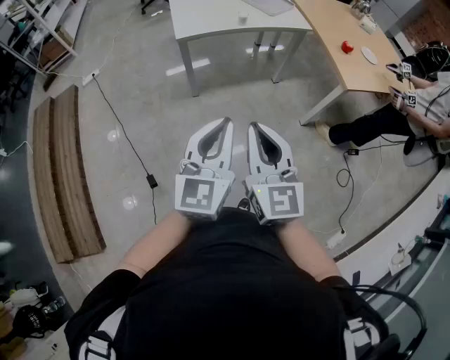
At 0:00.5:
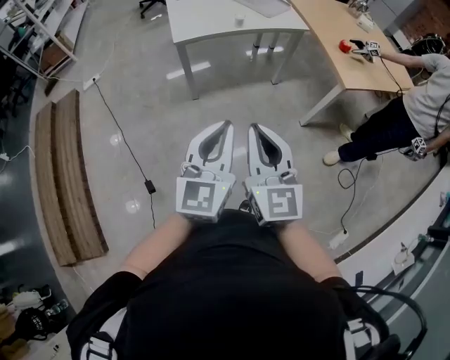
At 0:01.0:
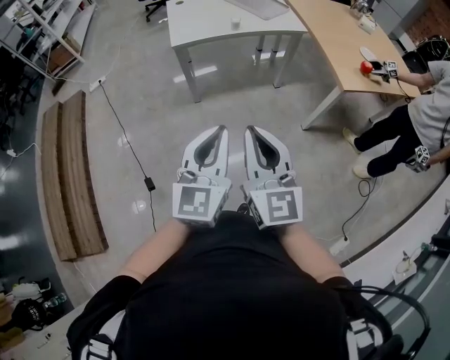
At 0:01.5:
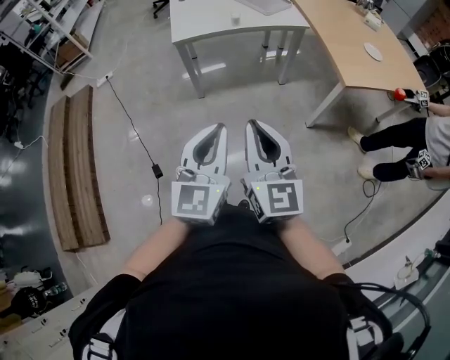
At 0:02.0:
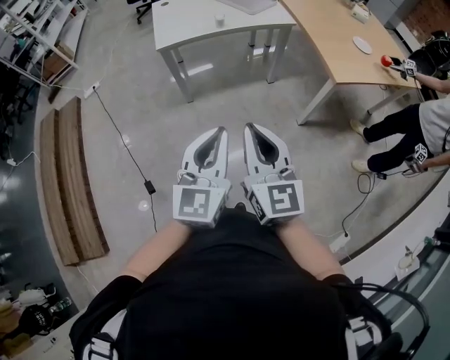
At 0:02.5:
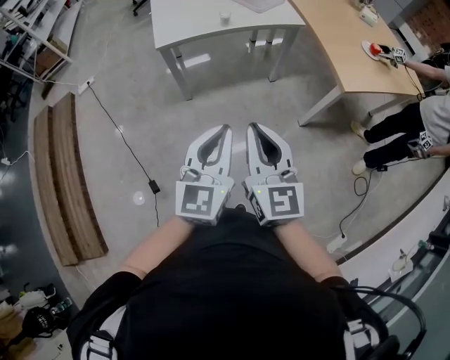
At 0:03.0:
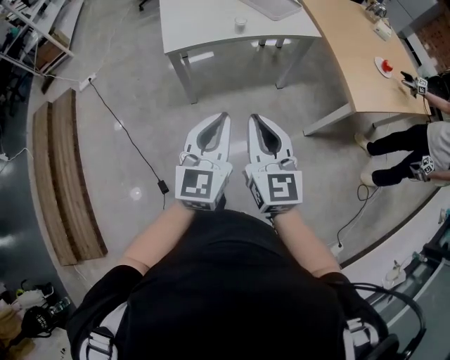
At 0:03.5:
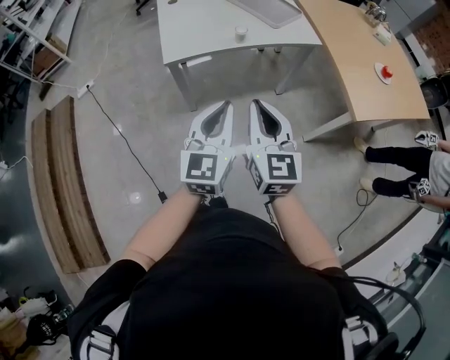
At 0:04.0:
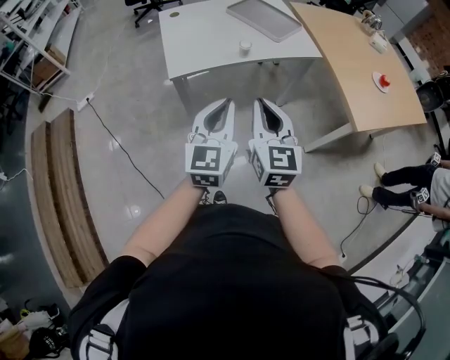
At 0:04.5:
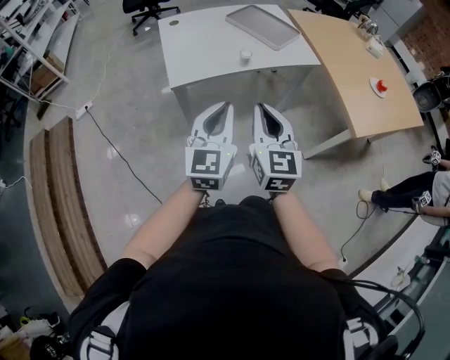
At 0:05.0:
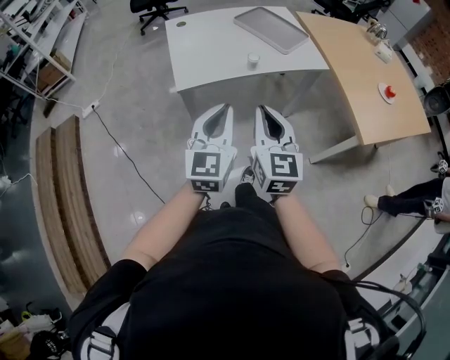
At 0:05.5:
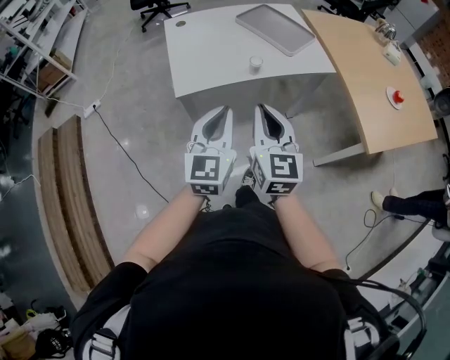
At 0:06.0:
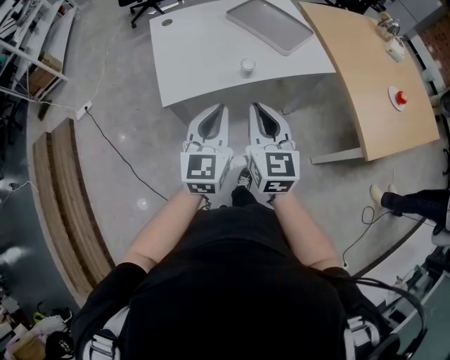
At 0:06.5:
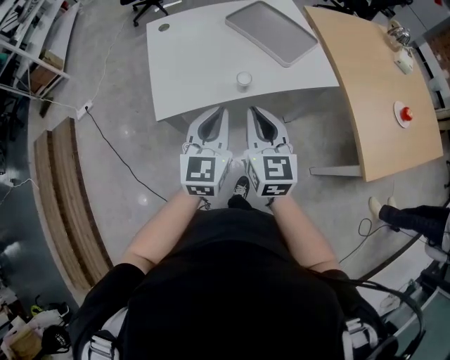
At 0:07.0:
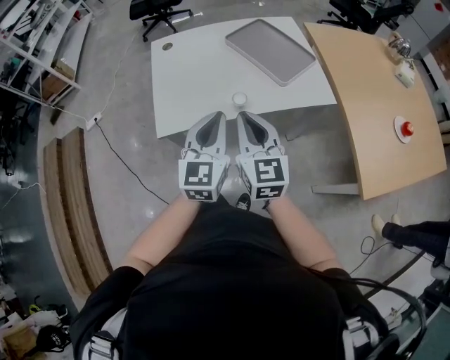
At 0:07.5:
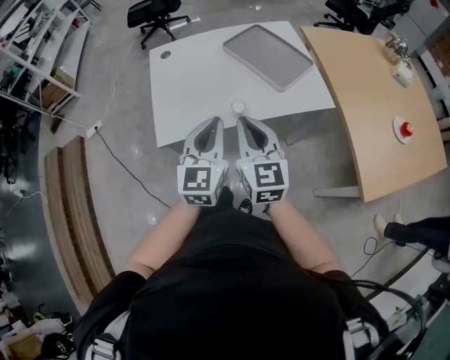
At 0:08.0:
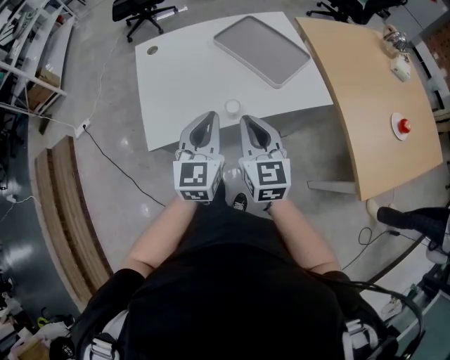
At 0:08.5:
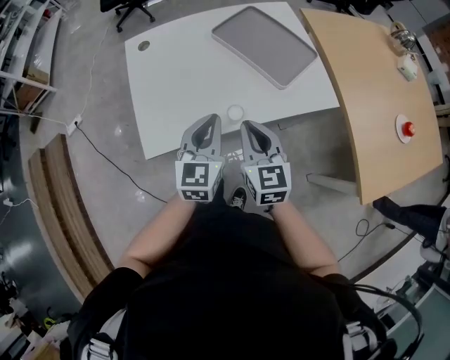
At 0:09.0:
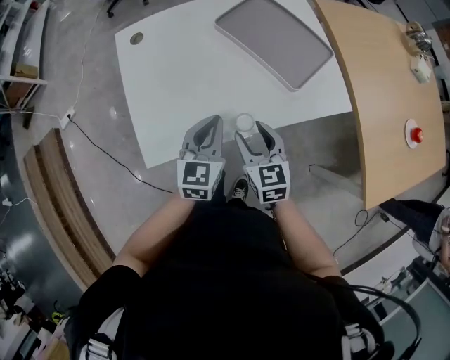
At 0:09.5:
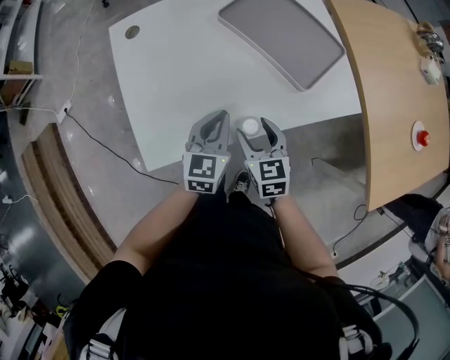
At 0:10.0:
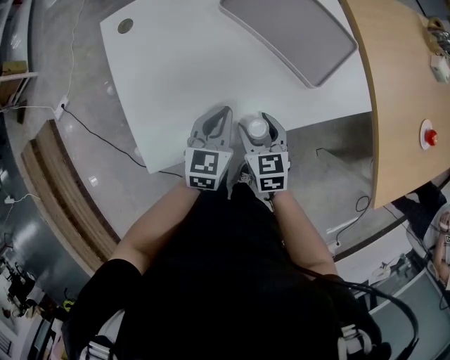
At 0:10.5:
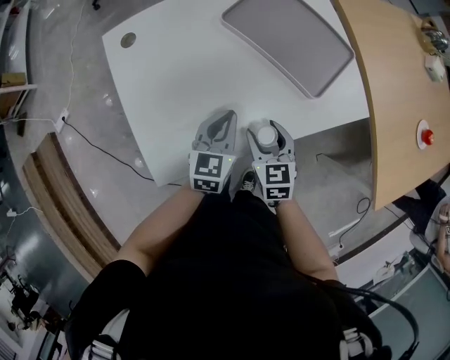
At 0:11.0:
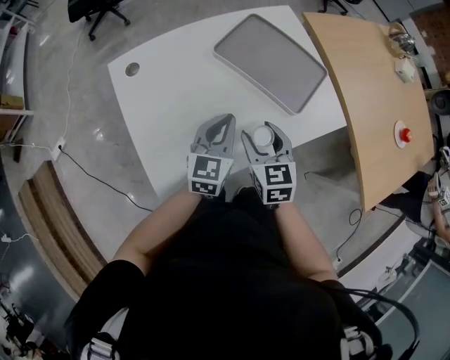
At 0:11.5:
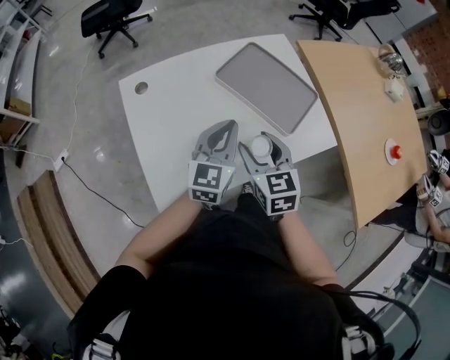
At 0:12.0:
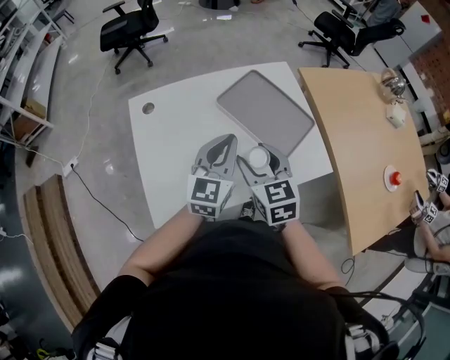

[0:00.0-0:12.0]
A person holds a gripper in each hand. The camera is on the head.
0:00.0 to 0:02.0: The grippers both shift to the right by some 15 cm.
0:02.0 to 0:04.0: The right gripper heads forward, covering approximately 35 cm; the left gripper shifts approximately 35 cm forward and to the left.
0:04.0 to 0:06.0: The grippers both shift forward by roughly 20 cm.
0:06.0 to 0:08.0: Both grippers travel together forward, roughly 15 cm.
0:08.0 to 0:10.0: The grippers both shift downward and forward by some 30 cm. The left gripper swivels roughly 30 degrees, while the right gripper changes its angle by approximately 30 degrees, and opens up.
0:10.0 to 0:12.0: The two grippers go roughly 25 cm upward. The left gripper turns by some 20 degrees.

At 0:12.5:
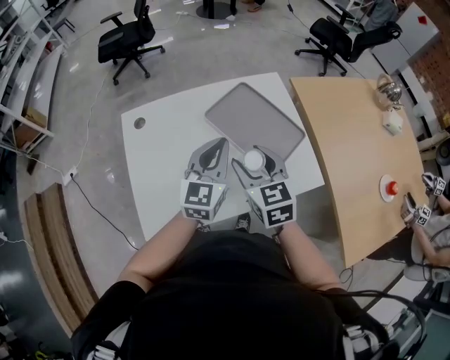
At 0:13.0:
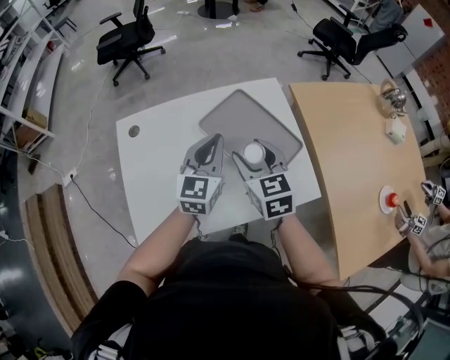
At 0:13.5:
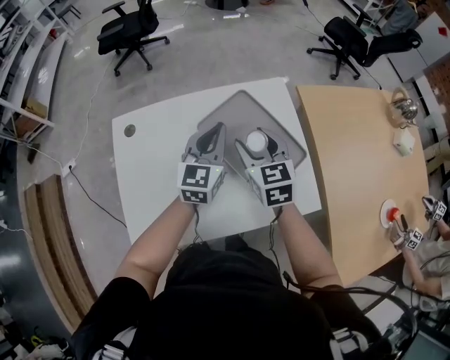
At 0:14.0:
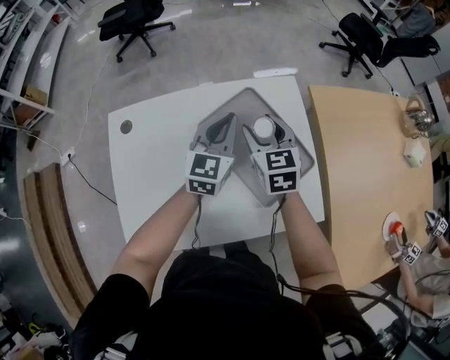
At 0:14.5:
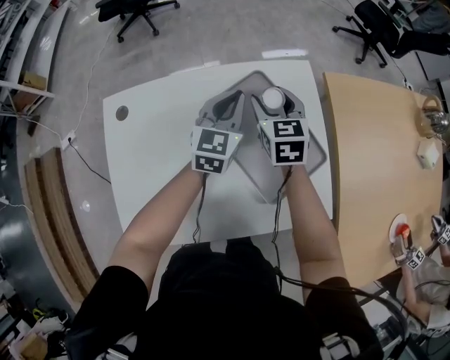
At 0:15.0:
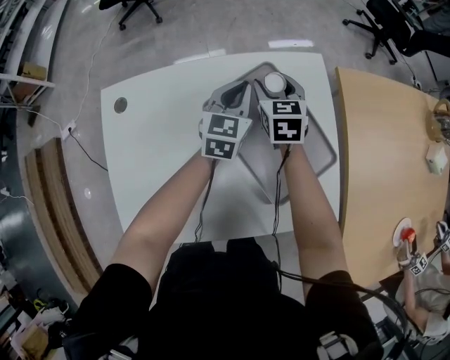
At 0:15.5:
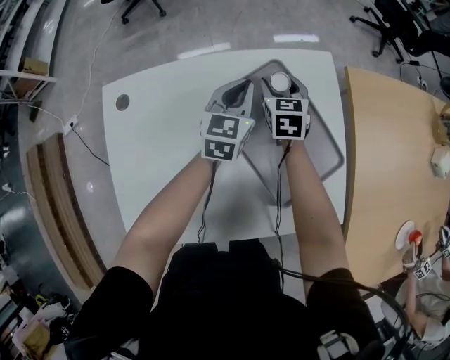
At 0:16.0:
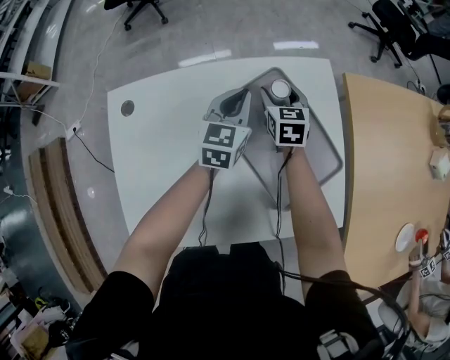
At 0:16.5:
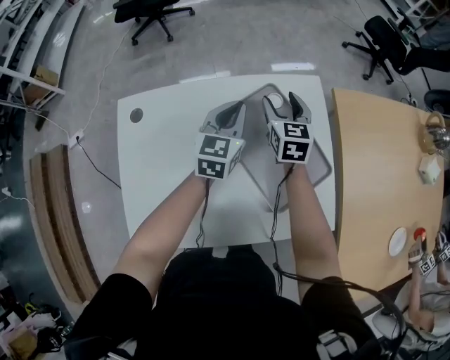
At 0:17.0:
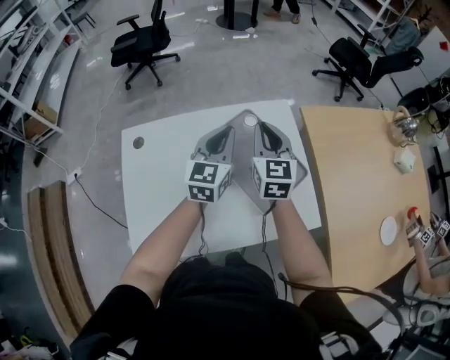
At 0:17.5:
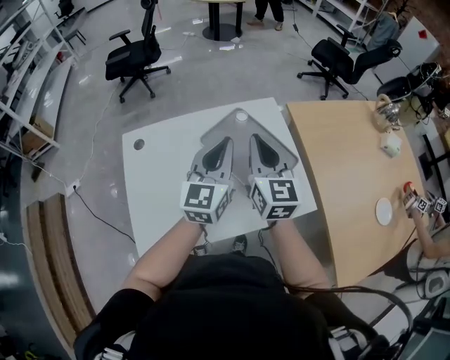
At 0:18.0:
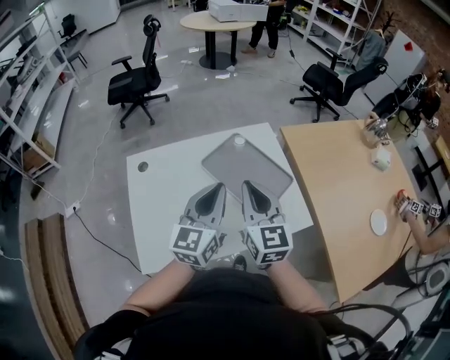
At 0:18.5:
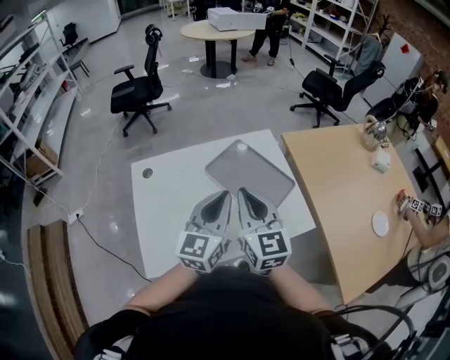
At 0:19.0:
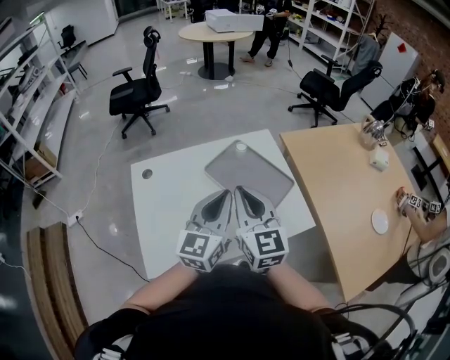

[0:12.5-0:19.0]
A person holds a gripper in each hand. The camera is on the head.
0:12.5 to 0:14.5: The grippers both shift forward and downward by about 30 cm.
0:14.5 to 0:17.0: The two grippers go approximately 15 cm upward and backward. The right gripper closes up.
0:17.0 to 0:19.0: The grippers both shift backward and upward by roughly 25 cm.

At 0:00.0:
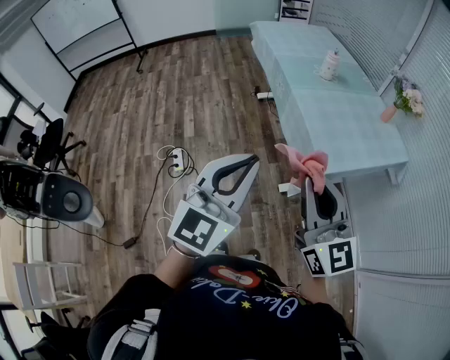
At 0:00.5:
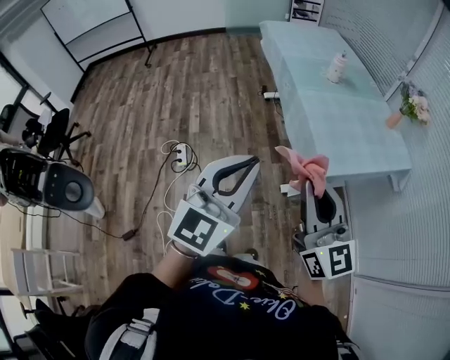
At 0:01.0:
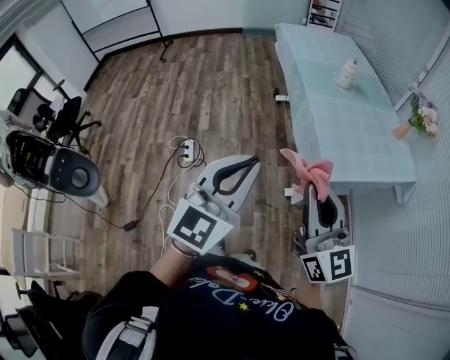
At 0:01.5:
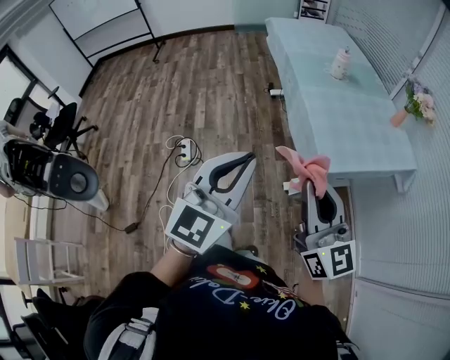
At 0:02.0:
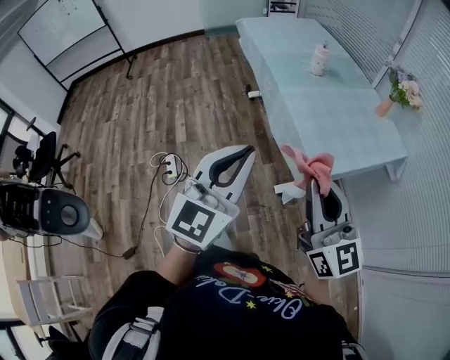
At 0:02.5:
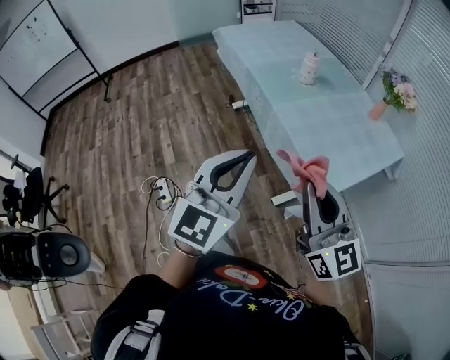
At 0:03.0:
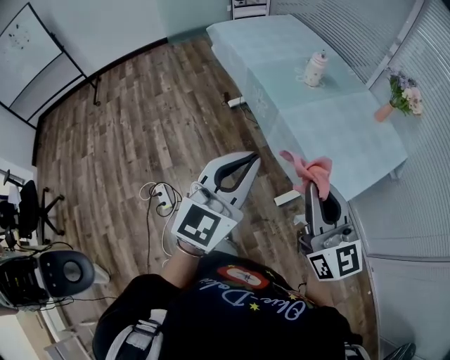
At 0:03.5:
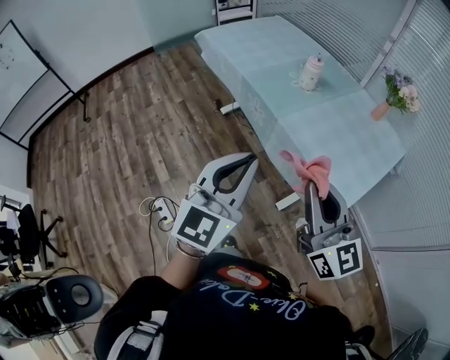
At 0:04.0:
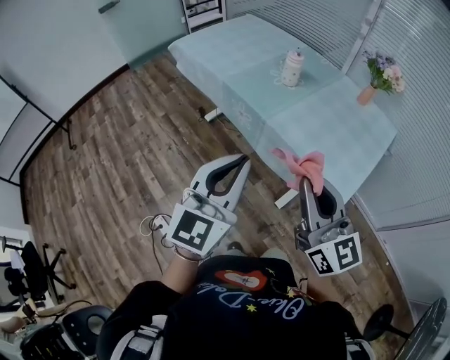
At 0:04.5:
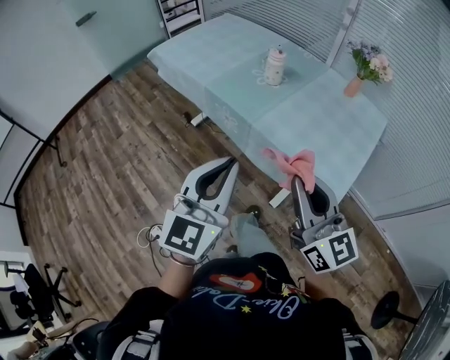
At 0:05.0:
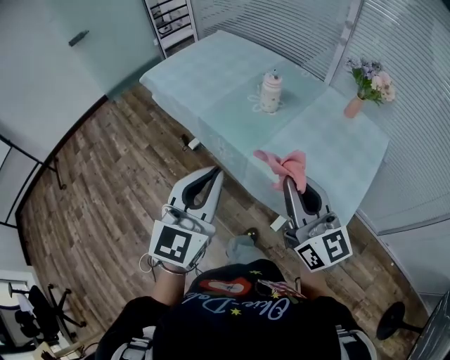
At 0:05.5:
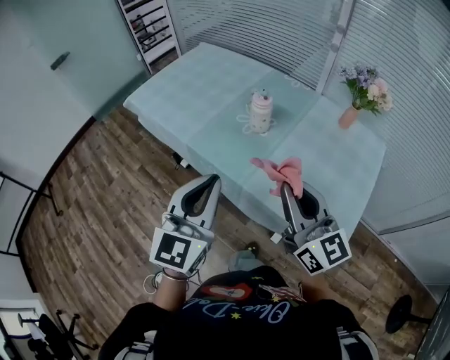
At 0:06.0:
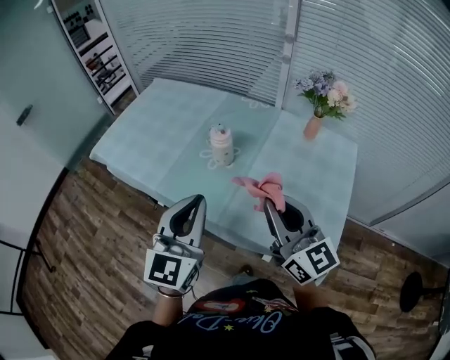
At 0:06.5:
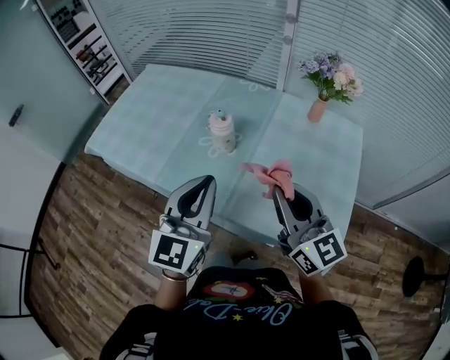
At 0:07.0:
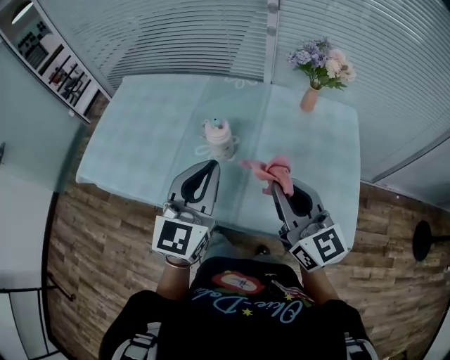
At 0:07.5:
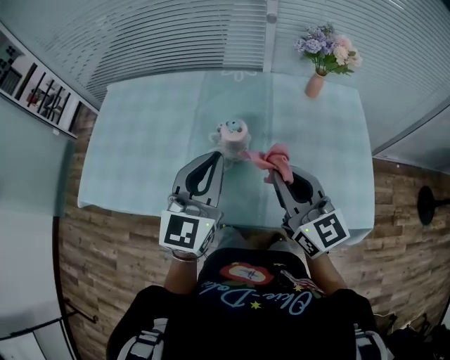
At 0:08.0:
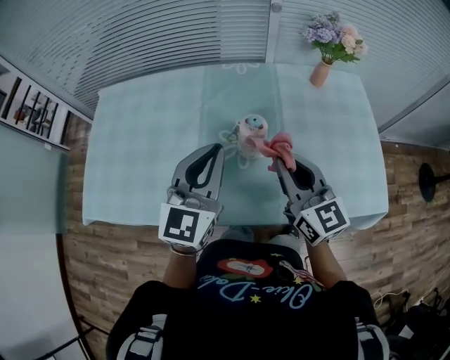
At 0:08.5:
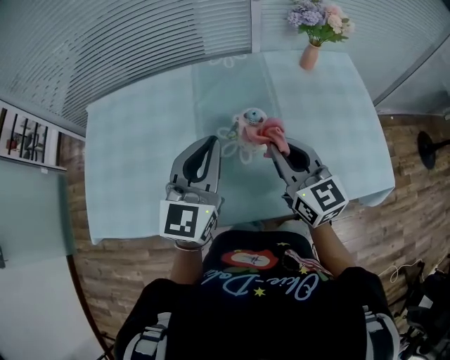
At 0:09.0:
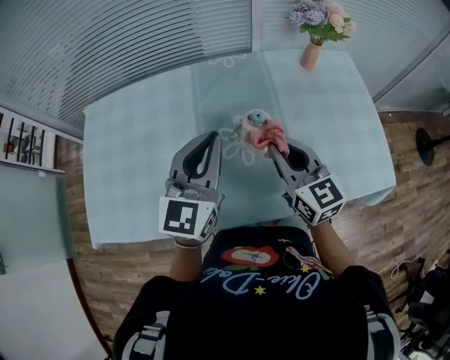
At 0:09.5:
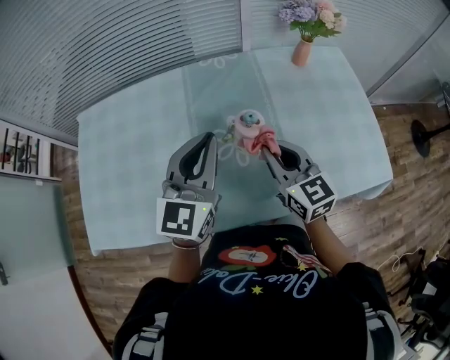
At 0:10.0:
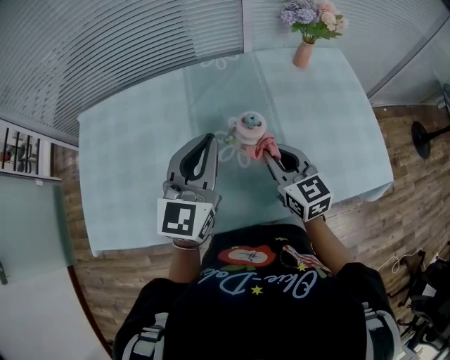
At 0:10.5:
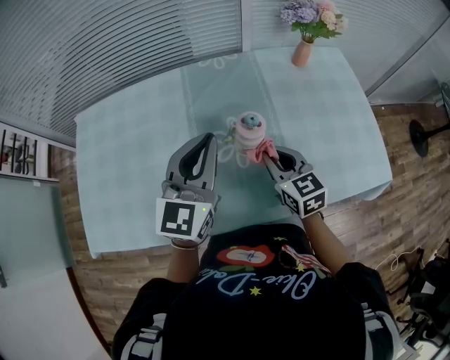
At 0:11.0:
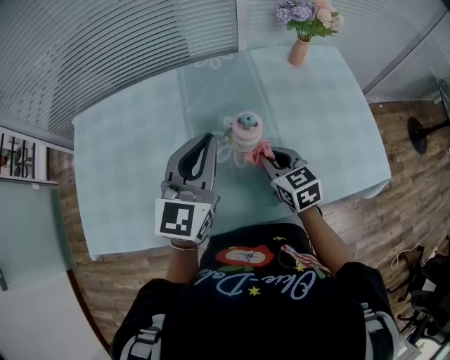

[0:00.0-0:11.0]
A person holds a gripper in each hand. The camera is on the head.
0:00.0 to 0:02.0: The left gripper goes roughly 5 cm forward. The right gripper changes place by approximately 5 cm.
0:02.0 to 0:03.5: Both grippers travel together forward and to the left, roughly 25 cm.
0:03.5 to 0:05.5: Both grippers move forward, roughly 25 cm.
0:05.5 to 0:07.5: The left gripper ends up approximately 25 cm from where it was, and rotates roughly 30 degrees. Meanwhile the right gripper changes place by about 20 cm, and turns by about 30 degrees.
0:07.5 to 0:09.0: The right gripper shifts some 10 cm to the left, downward and forward, while the left gripper travels forward and to the left by some 10 cm.
0:09.0 to 0:11.0: The right gripper travels downward by some 10 cm, and rotates approximately 20 degrees.
